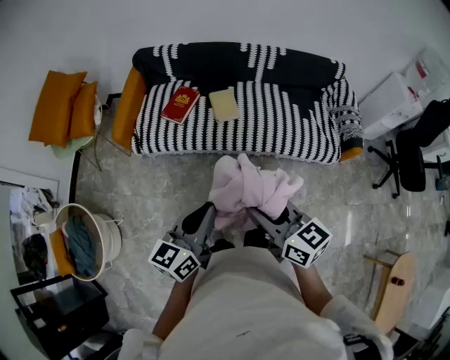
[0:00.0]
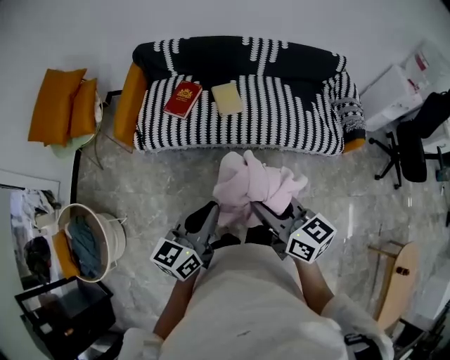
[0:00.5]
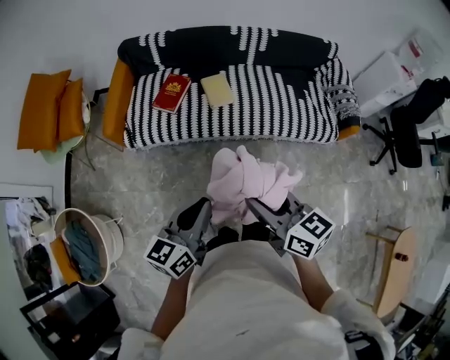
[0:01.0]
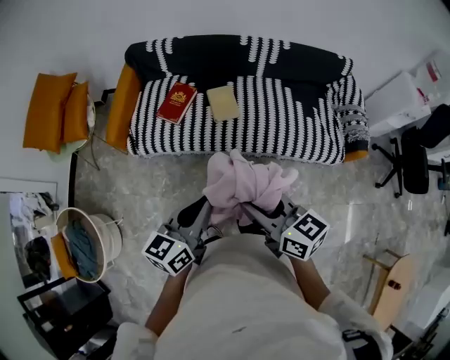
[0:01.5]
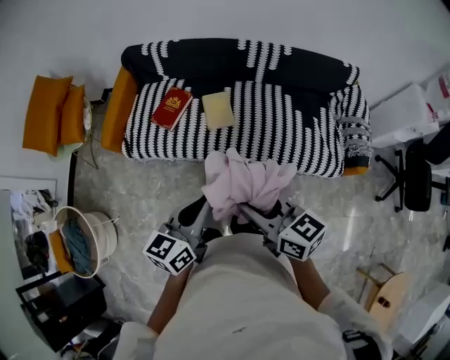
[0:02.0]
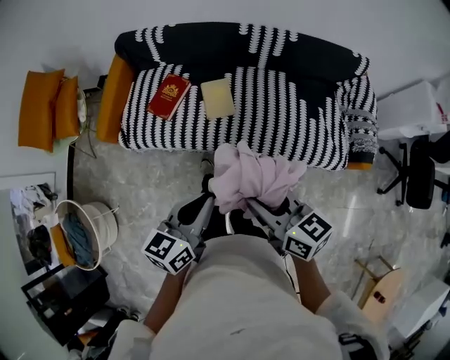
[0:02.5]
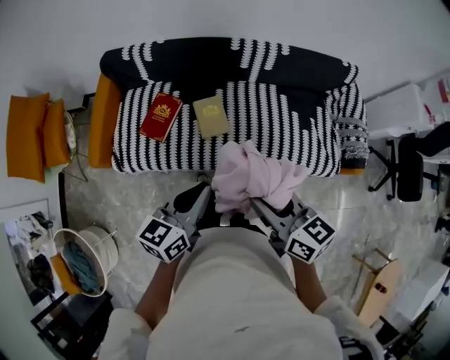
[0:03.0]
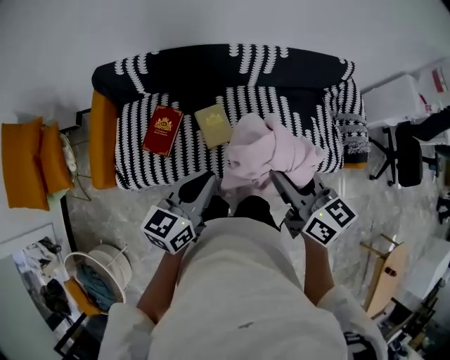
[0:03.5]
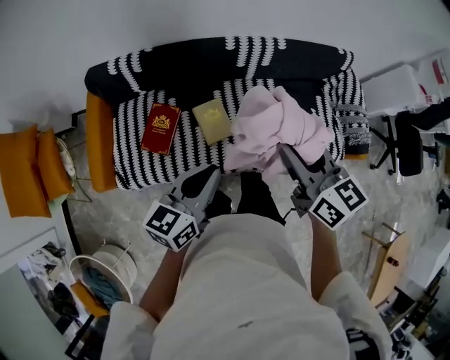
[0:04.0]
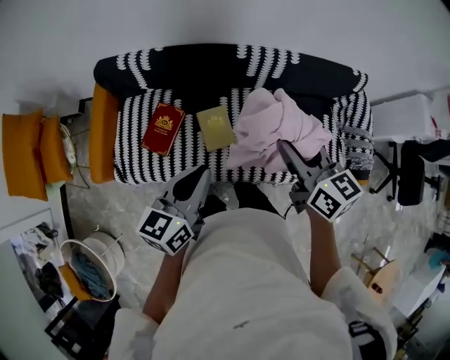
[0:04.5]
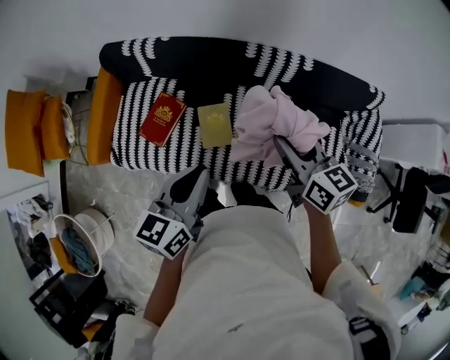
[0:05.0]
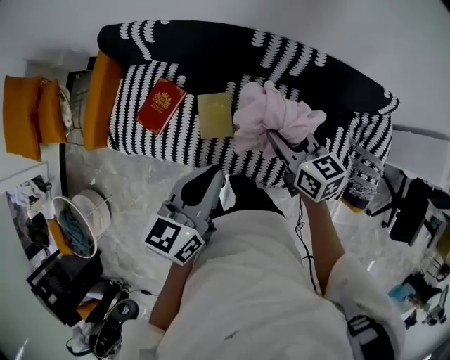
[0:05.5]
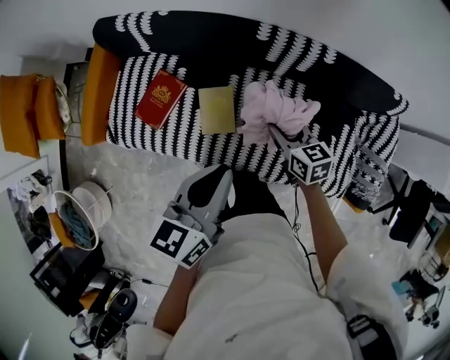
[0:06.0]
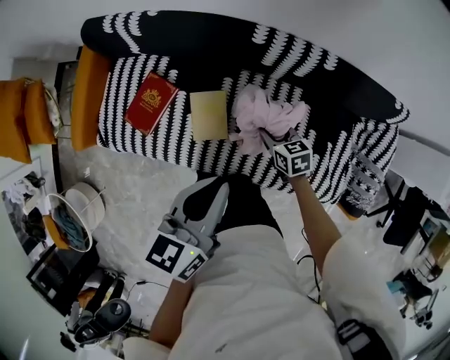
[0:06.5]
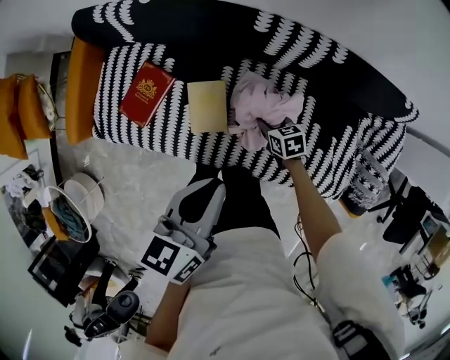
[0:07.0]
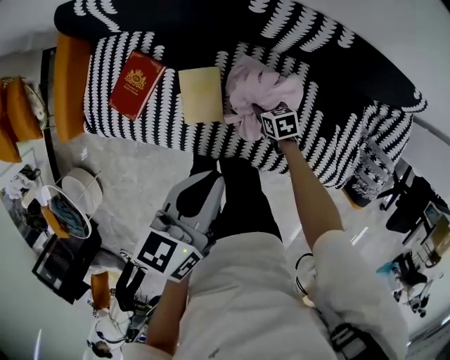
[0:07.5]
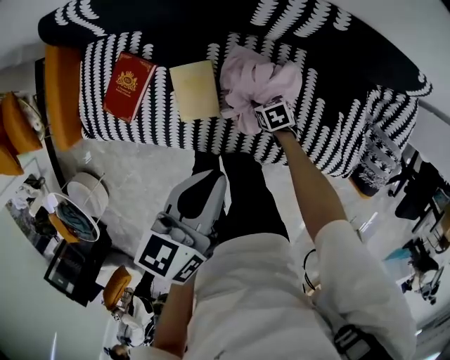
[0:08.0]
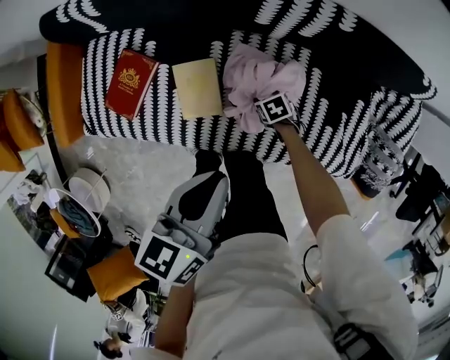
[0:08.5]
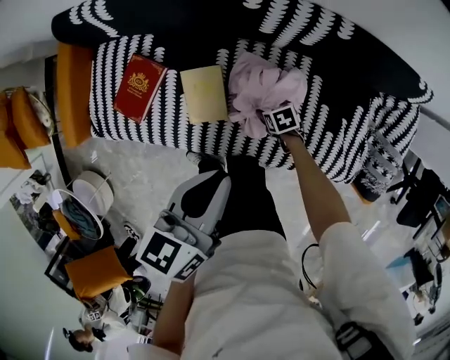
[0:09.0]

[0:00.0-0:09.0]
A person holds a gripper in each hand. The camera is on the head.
0:00.0 to 0:02.0: The grippers both shift forward and to the right by some 20 cm.
0:02.0 to 0:04.5: Both grippers travel together forward, approximately 35 cm. The right gripper swivels about 20 degrees.
0:04.5 to 0:07.0: The right gripper shifts roughly 50 cm downward, and angles its fingers downward, by some 40 degrees, while the left gripper moves to the right, forward and downward, approximately 20 cm, and changes its angle by about 20 degrees.
0:07.0 to 0:09.0: The right gripper moves downward, about 10 cm, and opens its fingers.

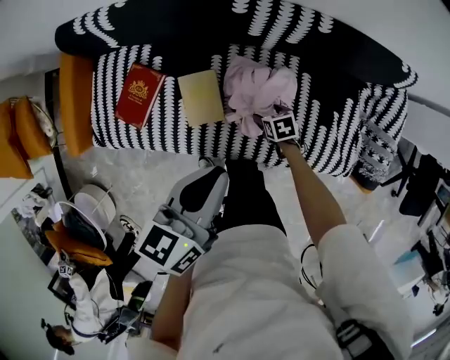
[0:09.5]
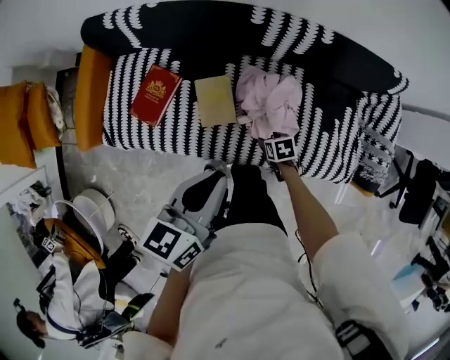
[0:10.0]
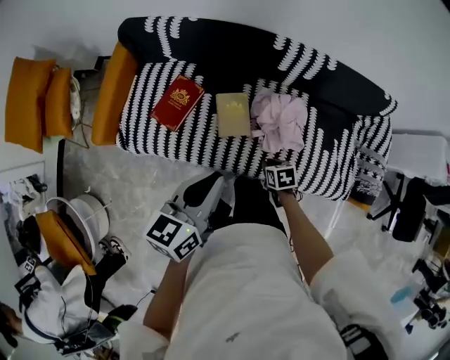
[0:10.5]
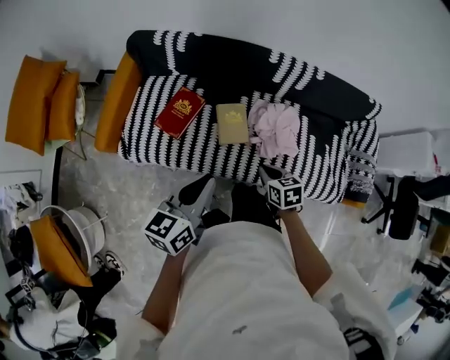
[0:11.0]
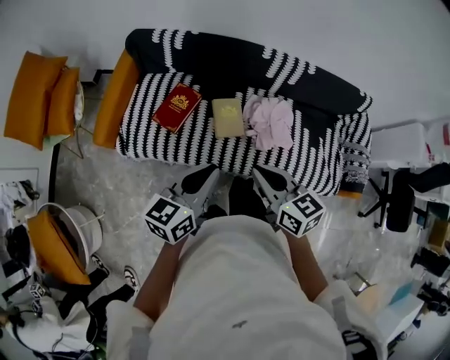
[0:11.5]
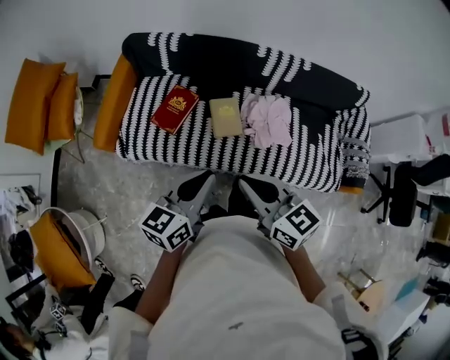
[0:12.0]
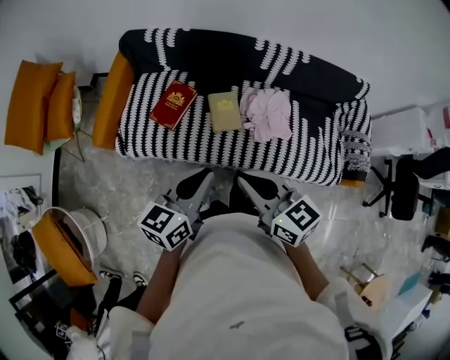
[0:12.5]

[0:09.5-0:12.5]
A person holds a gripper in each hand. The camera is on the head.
0:09.5 to 0:11.0: The left gripper travels to the left and backward by about 30 cm. Meanwhile the right gripper heads upward, to the left and backward, covering about 35 cm, rotates about 20 degrees, and closes.
0:11.0 to 0:12.5: The right gripper shifts approximately 25 cm upward, backward and to the left, and tips its fingers upward by some 30 degrees; the left gripper moves backward, about 5 cm.

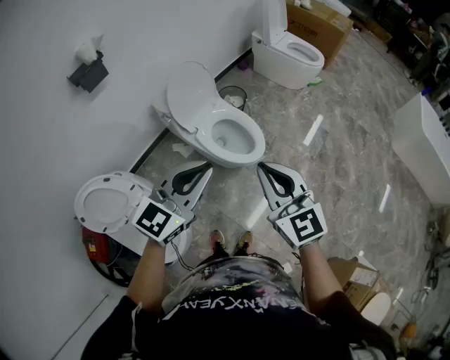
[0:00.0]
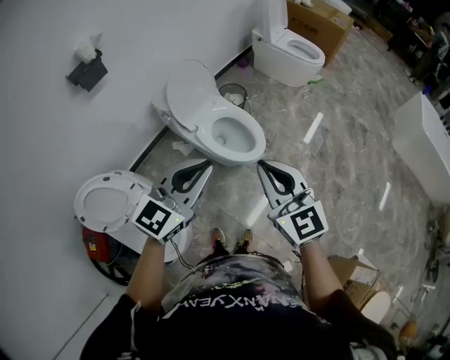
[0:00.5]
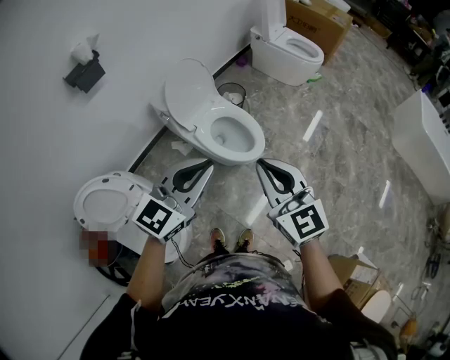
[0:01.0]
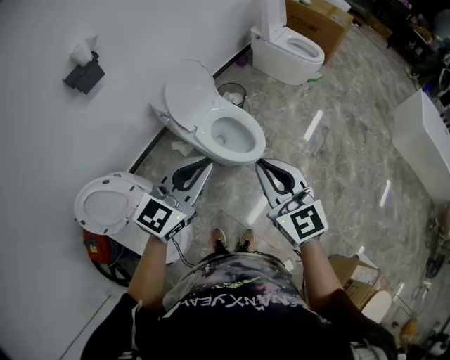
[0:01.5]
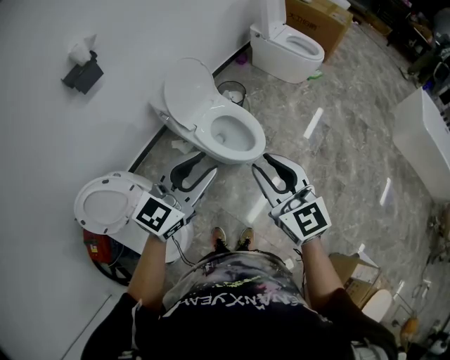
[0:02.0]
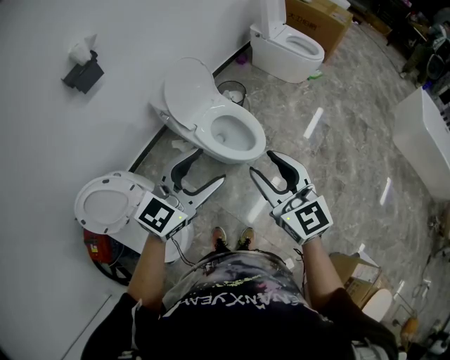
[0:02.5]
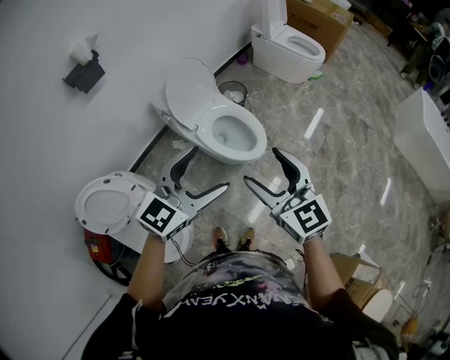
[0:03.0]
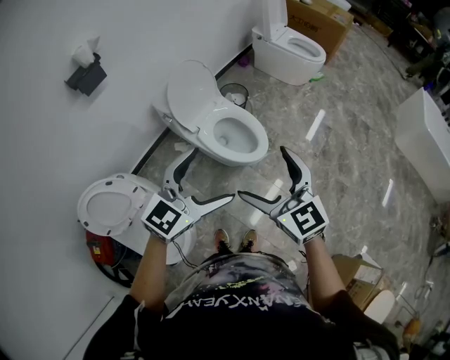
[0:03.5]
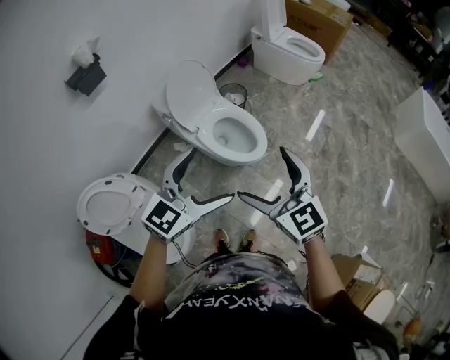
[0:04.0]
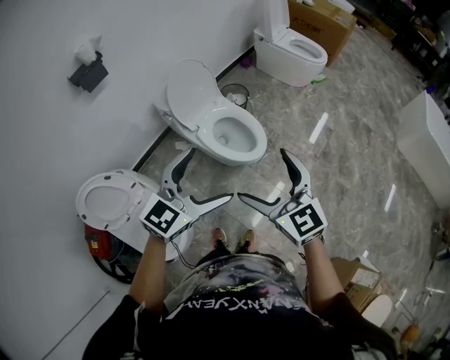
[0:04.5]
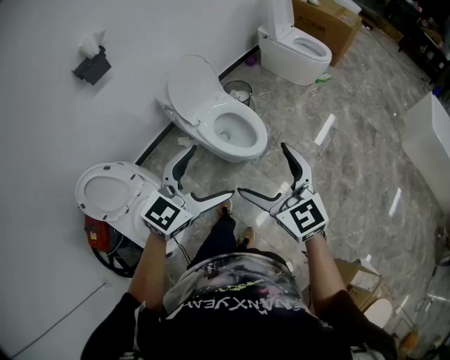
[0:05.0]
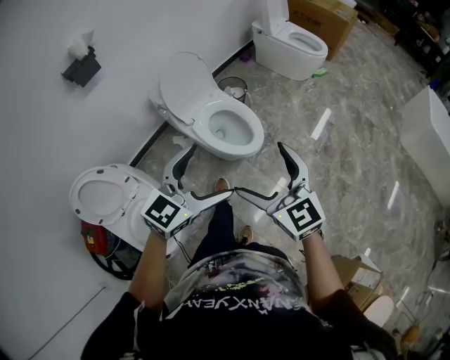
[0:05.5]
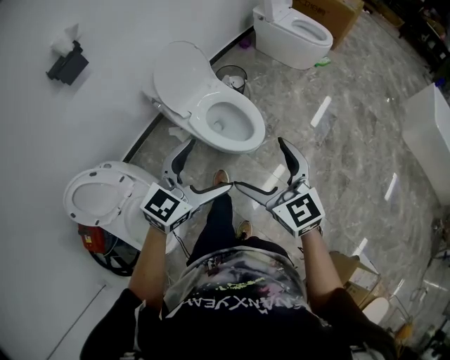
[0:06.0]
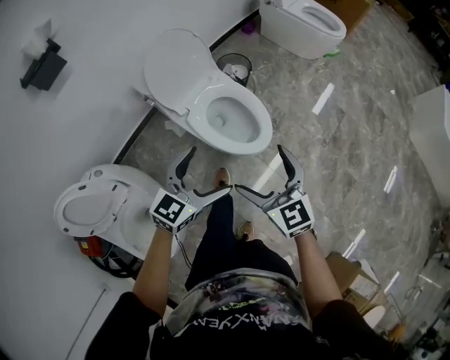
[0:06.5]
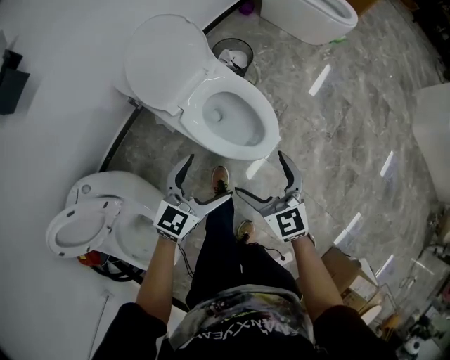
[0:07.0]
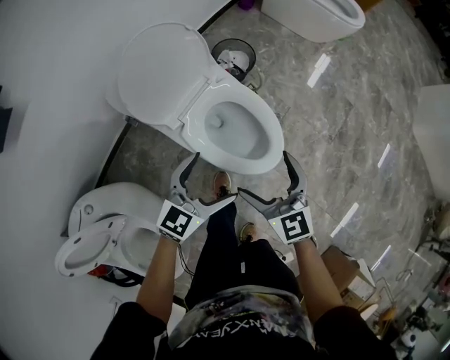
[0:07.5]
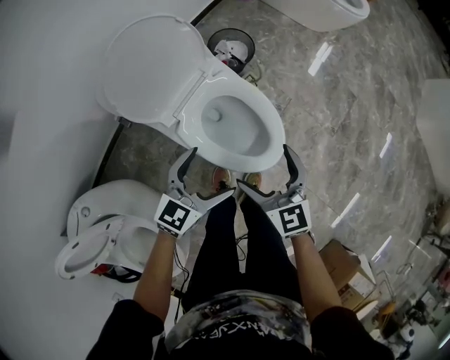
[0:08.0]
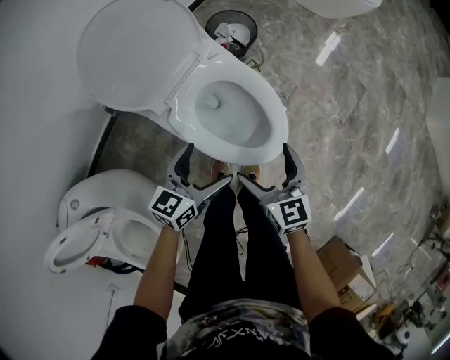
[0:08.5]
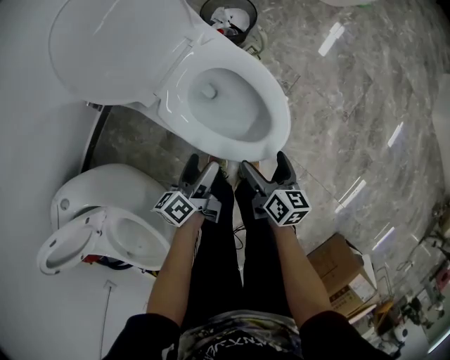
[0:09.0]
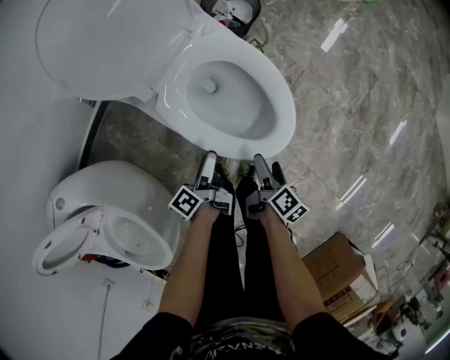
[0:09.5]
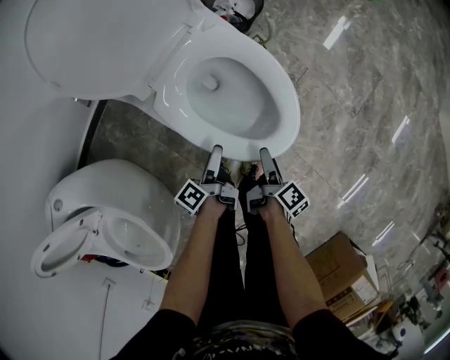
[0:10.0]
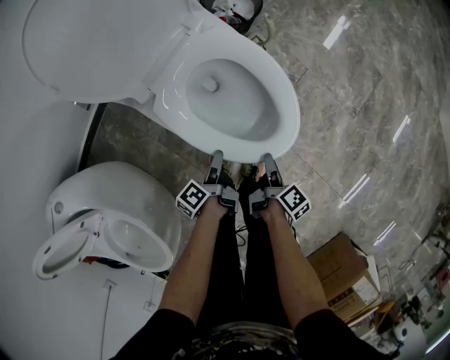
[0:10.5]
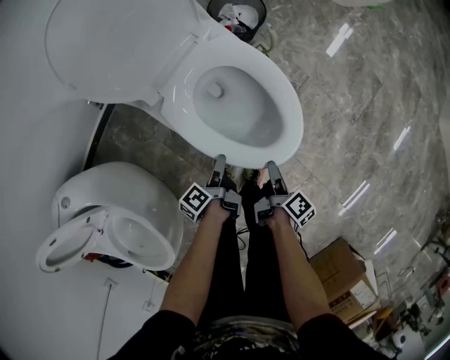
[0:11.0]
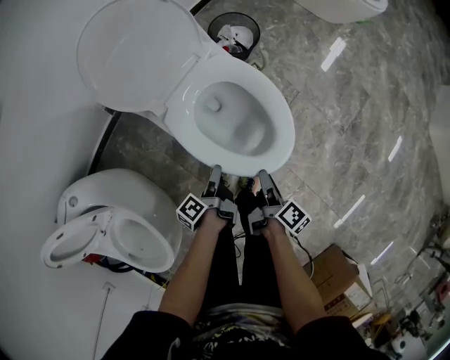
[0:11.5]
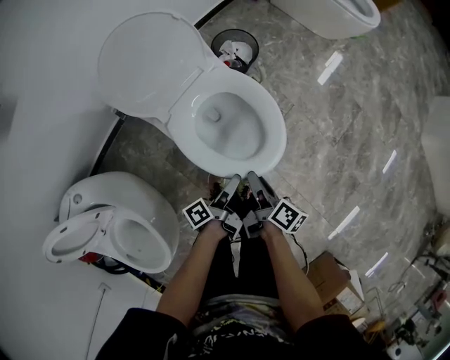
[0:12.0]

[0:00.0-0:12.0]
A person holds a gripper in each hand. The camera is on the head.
0:00.0 to 0:02.0: There are only small adjustments of the grippers.
0:02.0 to 0:04.0: The right gripper opens its fingers; the left gripper opens.
0:04.0 to 0:06.0: The two grippers go approximately 10 cm downward and forward.
0:06.0 to 0:08.0: Both grippers move downward and forward, roughly 40 cm.
0:08.0 to 0:10.0: Both grippers travel together downward, about 30 cm. The right gripper rotates around the line of its fingers by approximately 90 degrees, clockwise from behind. The left gripper twists some 90 degrees counterclockwise, seen from behind.
0:10.0 to 0:12.0: The two grippers go roughly 20 cm upward. The left gripper closes its fingers. Meanwhile the right gripper rotates approximately 20 degrees, and closes its fingers.

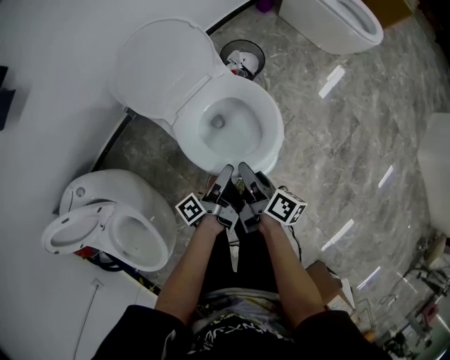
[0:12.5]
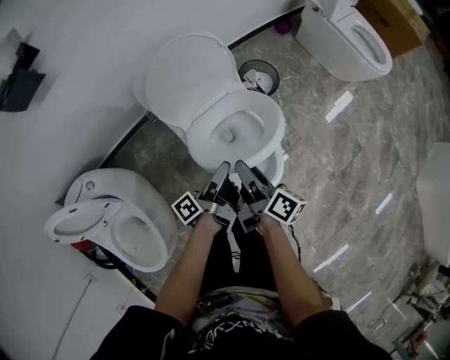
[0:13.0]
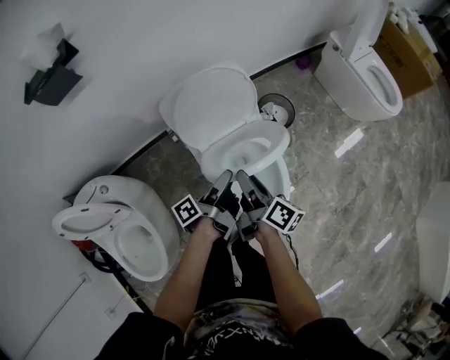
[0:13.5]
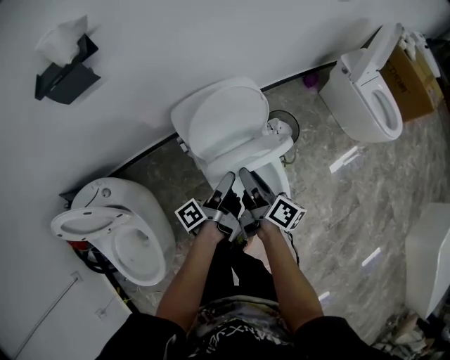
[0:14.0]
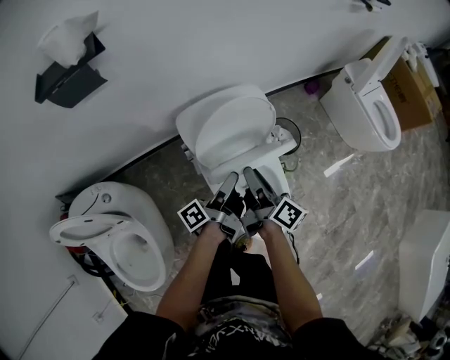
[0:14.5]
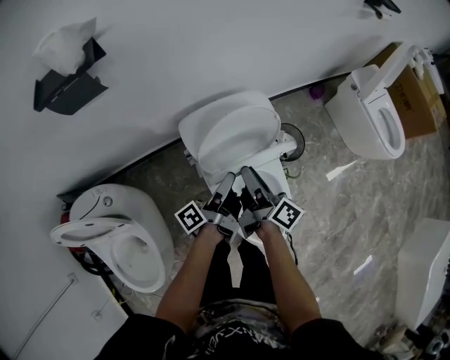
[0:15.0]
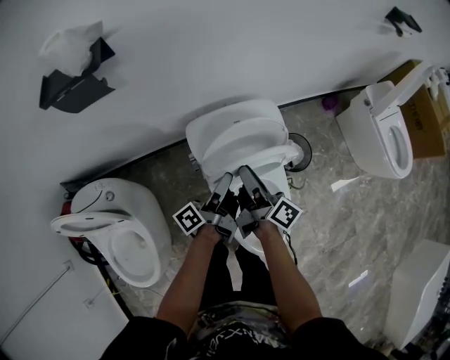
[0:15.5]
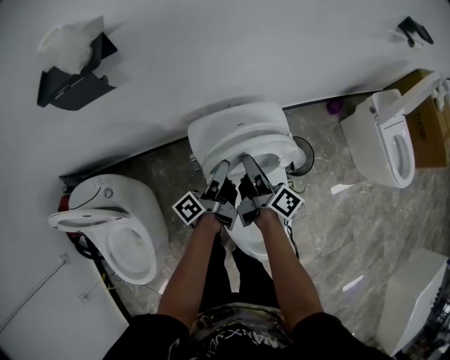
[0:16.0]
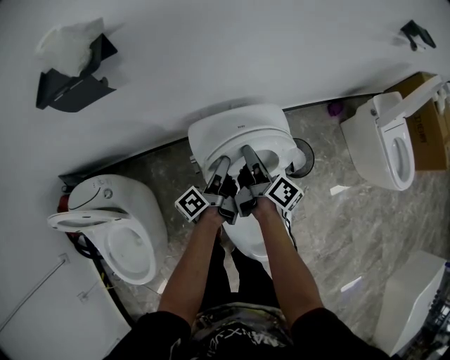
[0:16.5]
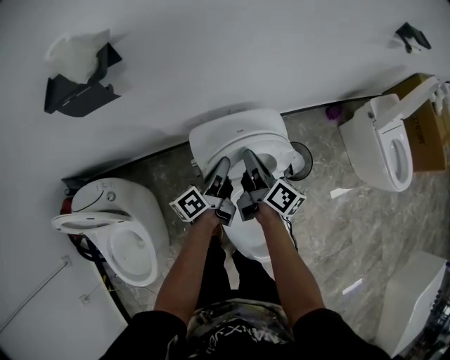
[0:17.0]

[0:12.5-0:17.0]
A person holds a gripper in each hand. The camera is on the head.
0:12.5 to 0:14.5: The right gripper shifts some 30 cm forward, upward and to the left, and rotates approximately 20 degrees. Meanwhile the left gripper goes about 25 cm forward, to the left and upward.
0:14.5 to 0:17.0: The two grippers go roughly 15 cm forward. The left gripper rotates about 30 degrees.
